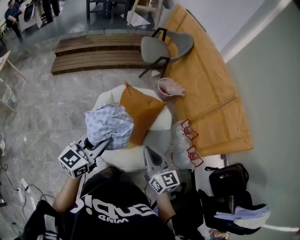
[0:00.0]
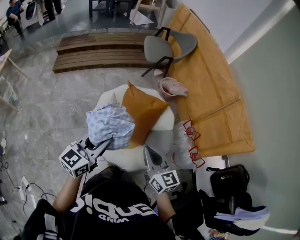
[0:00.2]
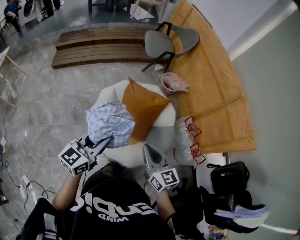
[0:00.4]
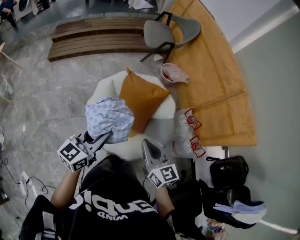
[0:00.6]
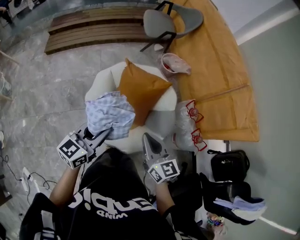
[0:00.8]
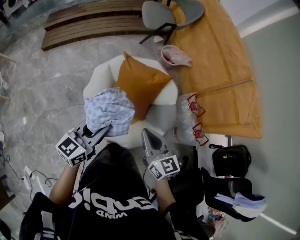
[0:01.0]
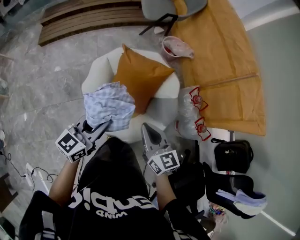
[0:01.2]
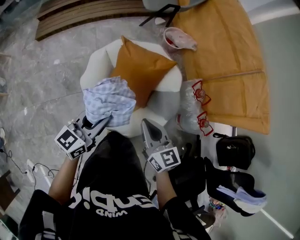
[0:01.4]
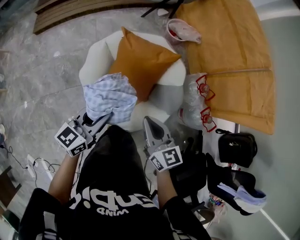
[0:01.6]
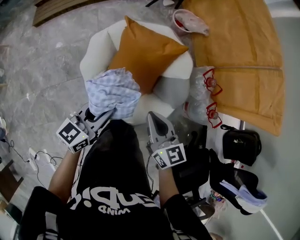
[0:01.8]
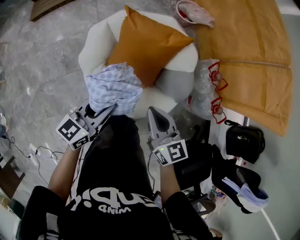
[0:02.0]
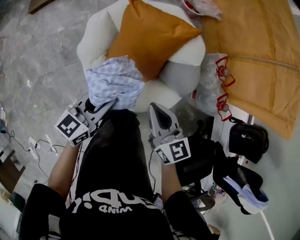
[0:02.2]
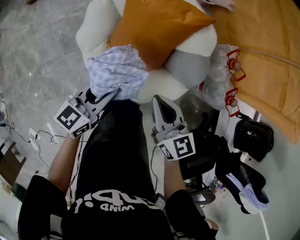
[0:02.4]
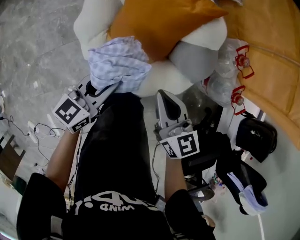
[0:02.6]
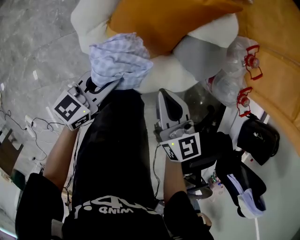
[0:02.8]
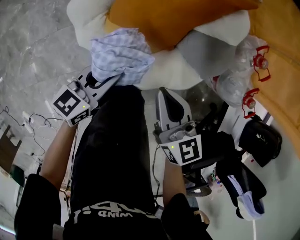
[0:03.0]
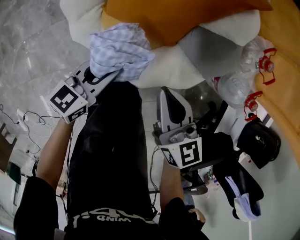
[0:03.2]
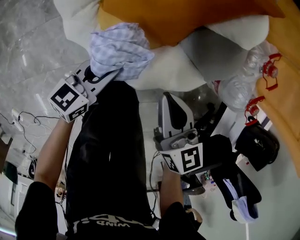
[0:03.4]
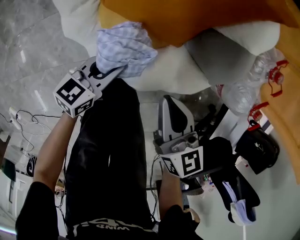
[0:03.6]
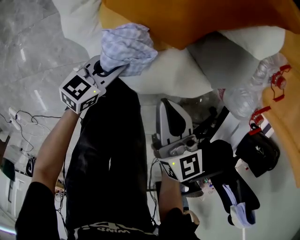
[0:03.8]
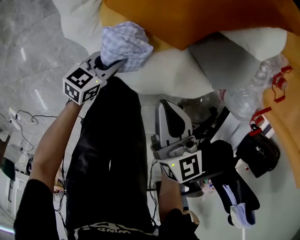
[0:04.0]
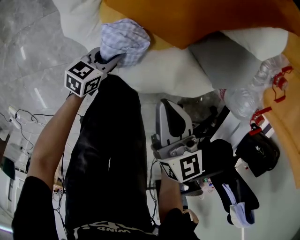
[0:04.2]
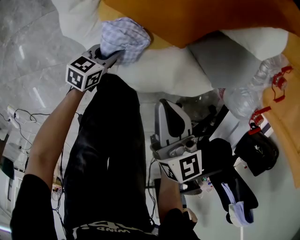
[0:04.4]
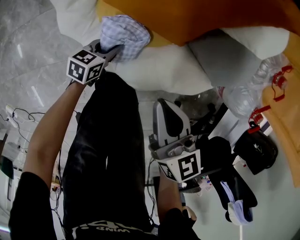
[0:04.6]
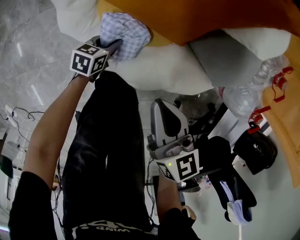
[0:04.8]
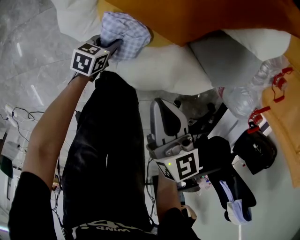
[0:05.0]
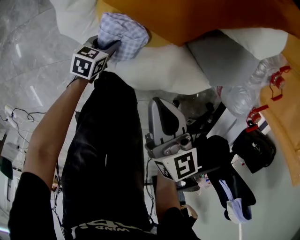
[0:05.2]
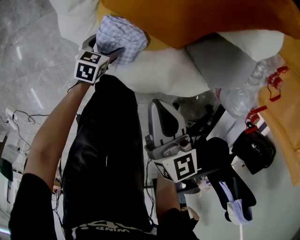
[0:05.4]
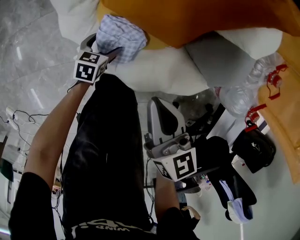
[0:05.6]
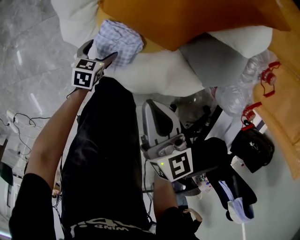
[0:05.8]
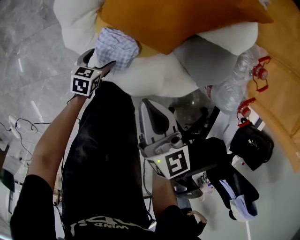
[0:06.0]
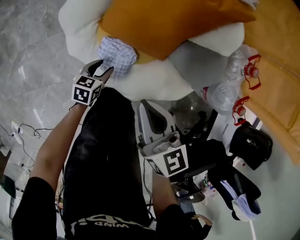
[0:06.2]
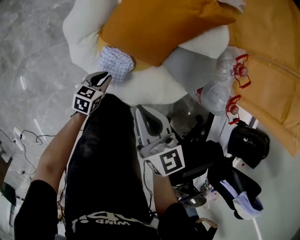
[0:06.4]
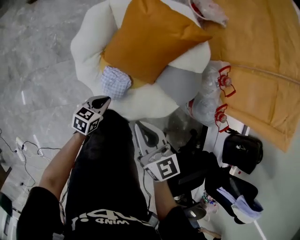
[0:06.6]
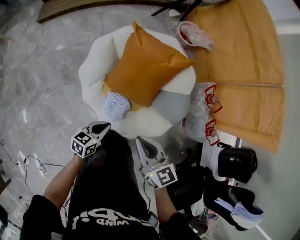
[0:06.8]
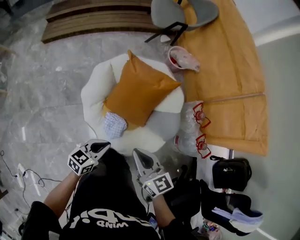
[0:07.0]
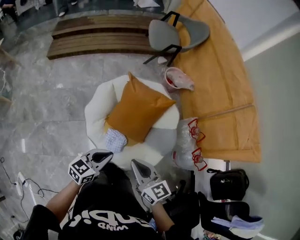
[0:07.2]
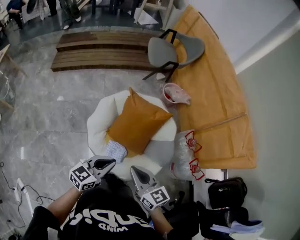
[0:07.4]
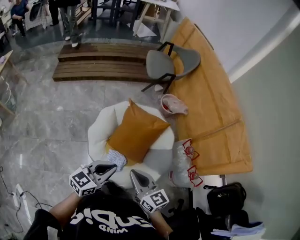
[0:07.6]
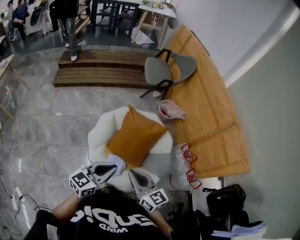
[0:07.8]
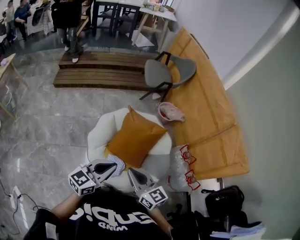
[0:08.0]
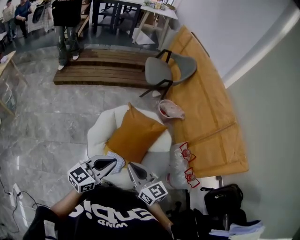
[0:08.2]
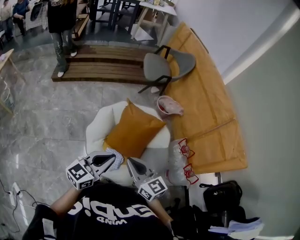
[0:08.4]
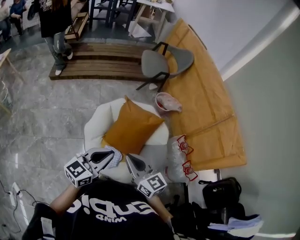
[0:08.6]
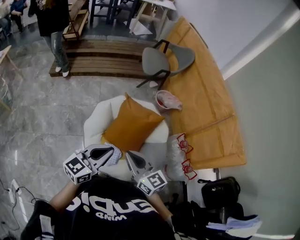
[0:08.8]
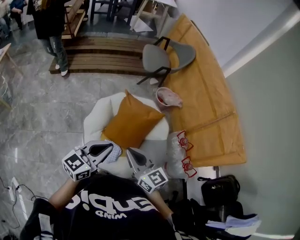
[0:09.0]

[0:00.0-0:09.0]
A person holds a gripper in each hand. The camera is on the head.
0.0 to 1.6 s: The grippers both shift downward and forward by roughly 15 cm.
1.6 to 3.0 s: The grippers both shift downward by some 25 cm.
3.0 to 4.4 s: The right gripper is displaced downward by some 10 cm, while the left gripper heads downward, covering about 30 cm.
4.4 to 6.0 s: The right gripper heads upward, covering roughly 5 cm. Meanwhile the left gripper opens.
6.0 to 7.6 s: The left gripper heads upward, covering roughly 70 cm, angles its fingers upward, by roughly 40 degrees, and closes. Meanwhile the right gripper moves upward, approximately 40 cm, and rotates roughly 20 degrees.
7.6 to 9.0 s: The left gripper heads upward, covering about 5 cm. The right gripper shifts by about 5 cm.

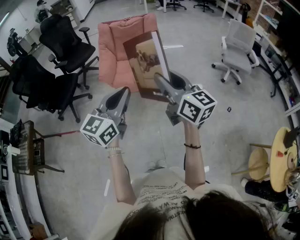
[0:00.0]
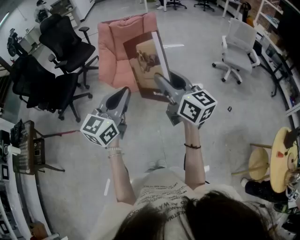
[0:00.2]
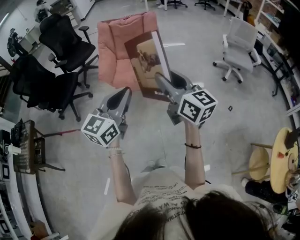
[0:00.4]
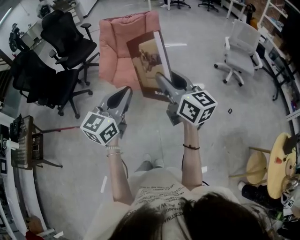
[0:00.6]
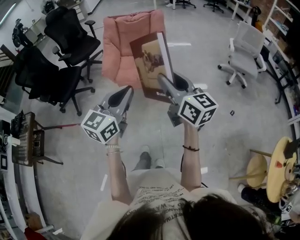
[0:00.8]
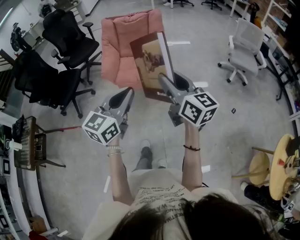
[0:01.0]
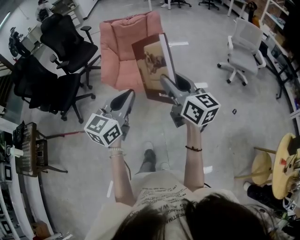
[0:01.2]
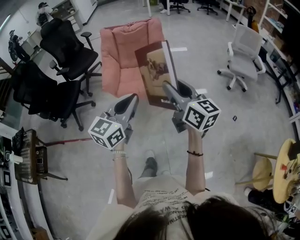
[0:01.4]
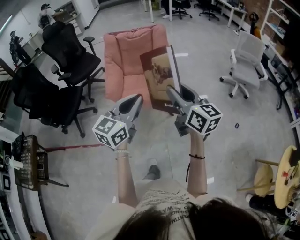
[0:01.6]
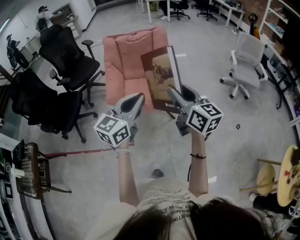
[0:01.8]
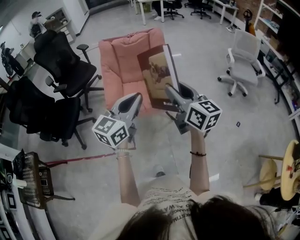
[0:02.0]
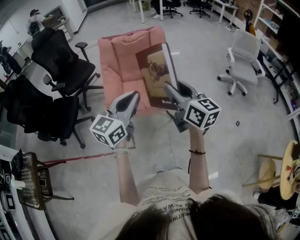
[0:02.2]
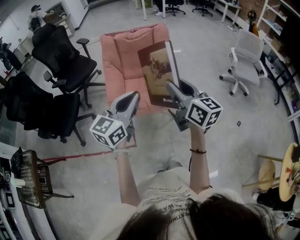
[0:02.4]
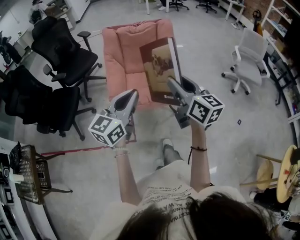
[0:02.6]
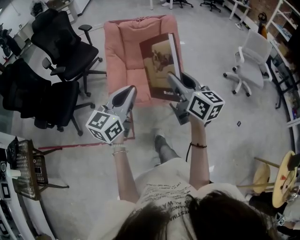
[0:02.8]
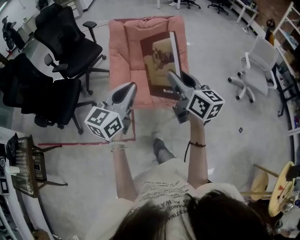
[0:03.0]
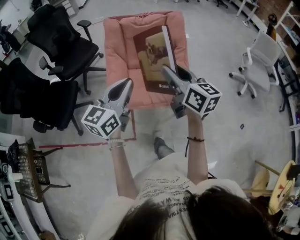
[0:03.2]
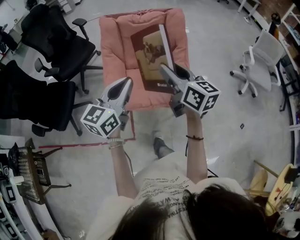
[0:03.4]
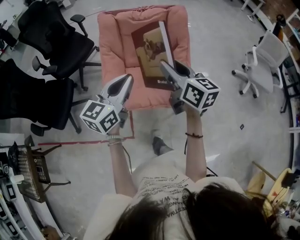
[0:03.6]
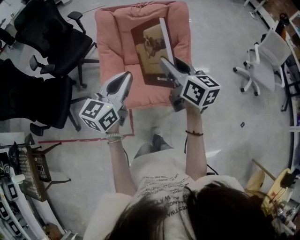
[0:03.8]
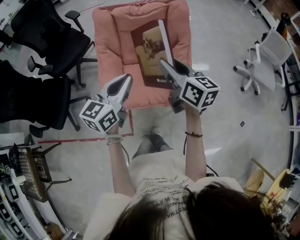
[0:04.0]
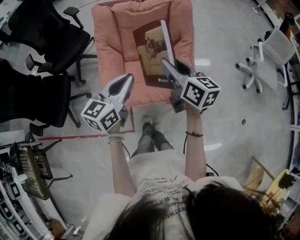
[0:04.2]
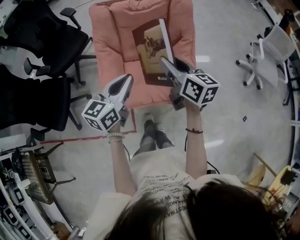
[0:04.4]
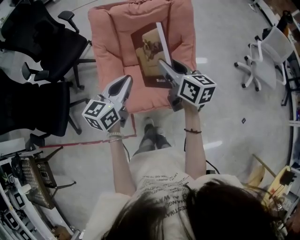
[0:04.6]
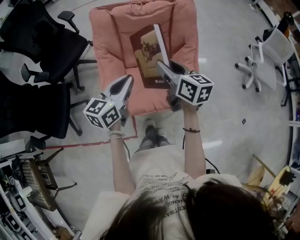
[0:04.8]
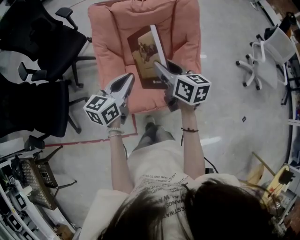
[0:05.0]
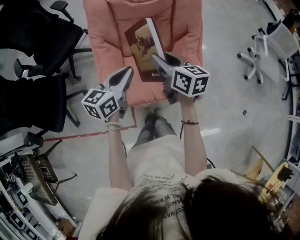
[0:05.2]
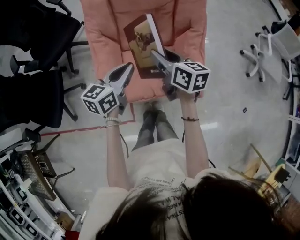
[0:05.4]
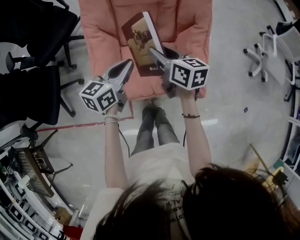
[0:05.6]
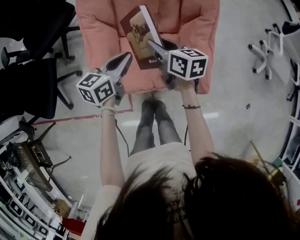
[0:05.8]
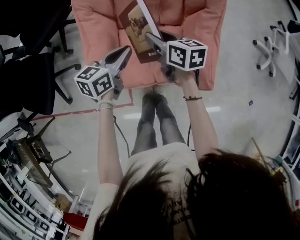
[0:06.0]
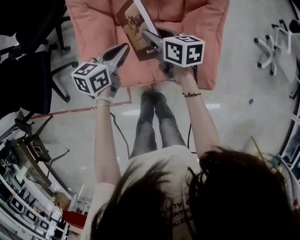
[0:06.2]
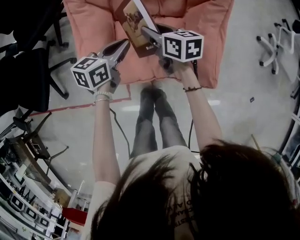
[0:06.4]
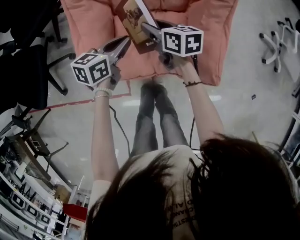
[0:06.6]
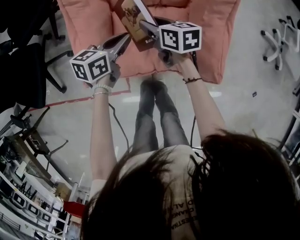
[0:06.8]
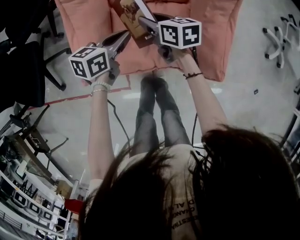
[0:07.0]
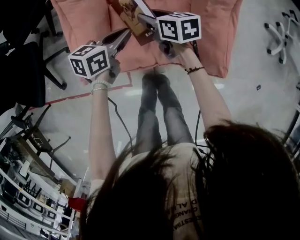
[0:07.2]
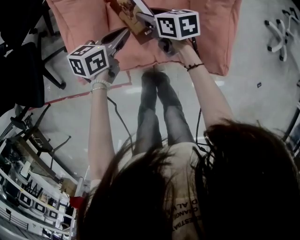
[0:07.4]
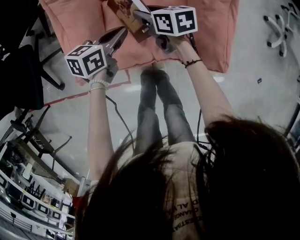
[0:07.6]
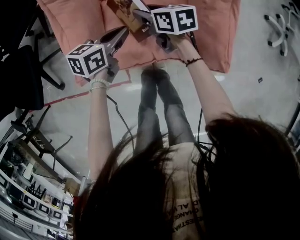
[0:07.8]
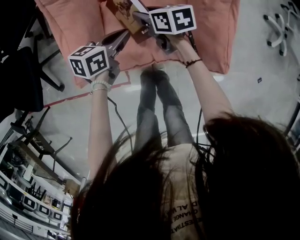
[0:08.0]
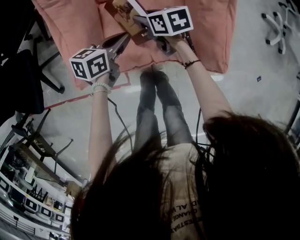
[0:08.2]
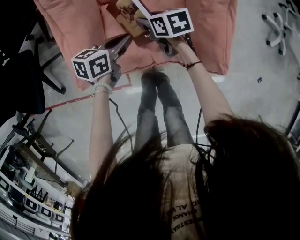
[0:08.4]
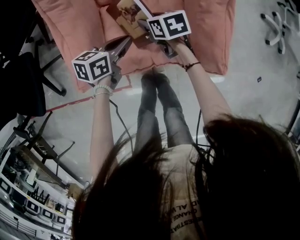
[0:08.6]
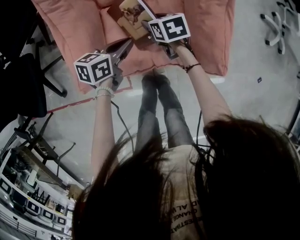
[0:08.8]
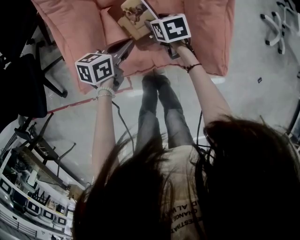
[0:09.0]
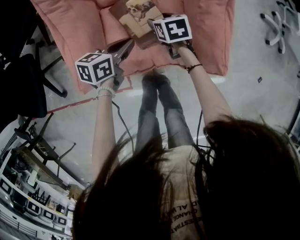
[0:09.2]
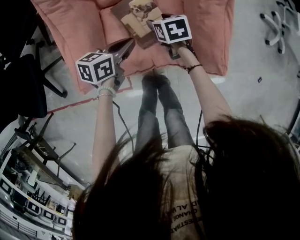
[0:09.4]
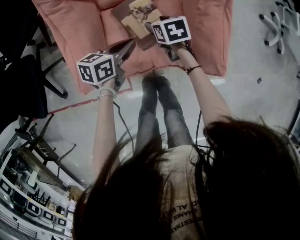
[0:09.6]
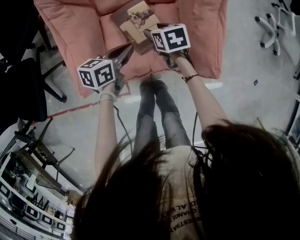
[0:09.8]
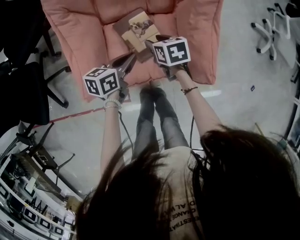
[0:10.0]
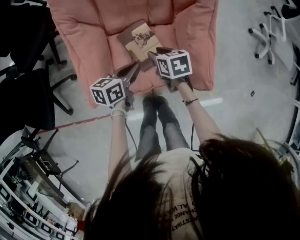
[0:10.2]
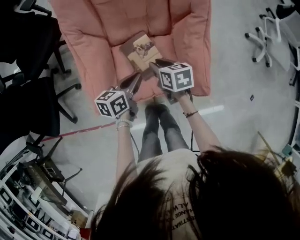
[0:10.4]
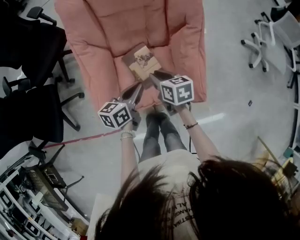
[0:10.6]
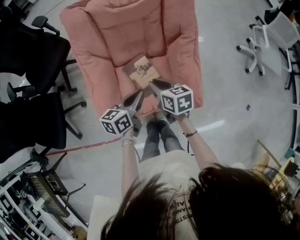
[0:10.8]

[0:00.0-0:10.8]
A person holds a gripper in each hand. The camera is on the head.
0.0 to 1.6 s: Both grippers travel together forward, about 15 cm.
1.6 to 3.0 s: The grippers both shift forward and to the left by some 25 cm.
3.0 to 4.6 s: Both grippers travel together forward and downward, some 30 cm.
4.6 to 6.2 s: Both grippers travel together downward and forward, about 30 cm. The left gripper turns by approximately 20 degrees; the right gripper changes its angle by roughly 20 degrees.
6.2 to 7.8 s: Both grippers move downward, roughly 15 cm.
7.8 to 9.2 s: The right gripper moves to the right, some 10 cm, and changes its angle by about 30 degrees.
9.2 to 10.8 s: The grippers both shift upward by about 20 cm. The right gripper turns by roughly 20 degrees, and closes.

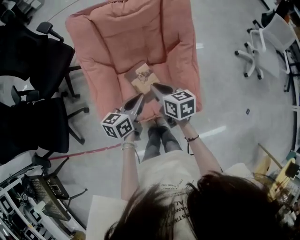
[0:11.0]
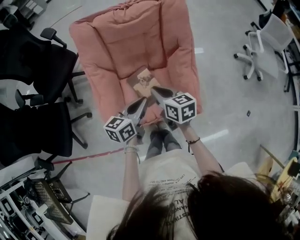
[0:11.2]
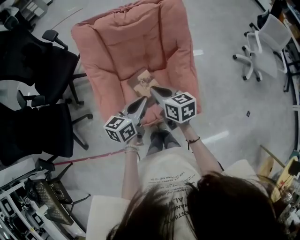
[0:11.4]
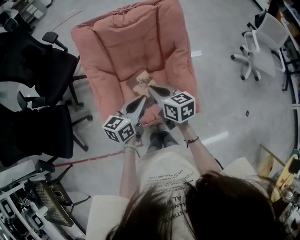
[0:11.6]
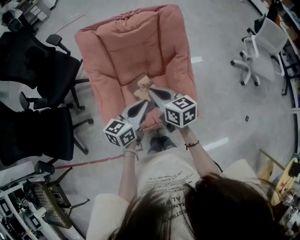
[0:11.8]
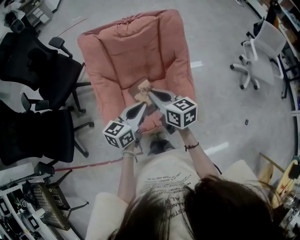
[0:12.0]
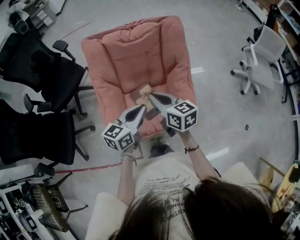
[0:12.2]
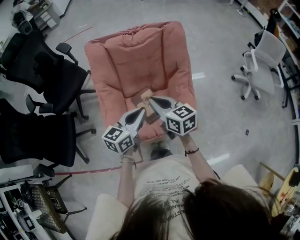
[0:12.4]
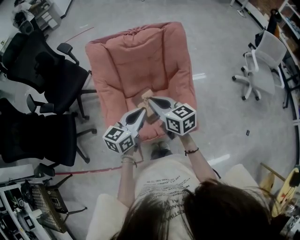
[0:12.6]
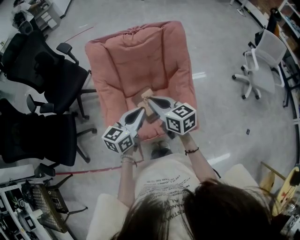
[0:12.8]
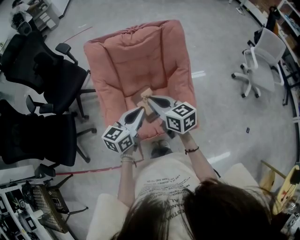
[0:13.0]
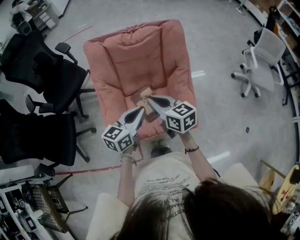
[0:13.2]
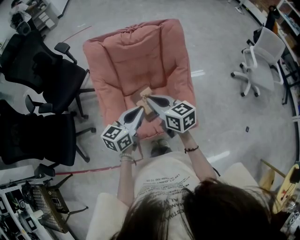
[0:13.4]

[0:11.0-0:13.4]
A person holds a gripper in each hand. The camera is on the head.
11.0 to 12.2 s: The two grippers go roughly 10 cm upward.
12.2 to 13.4 s: The grippers move only a little.

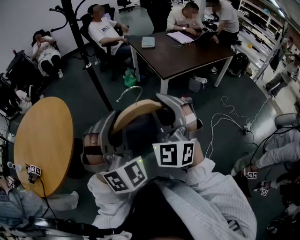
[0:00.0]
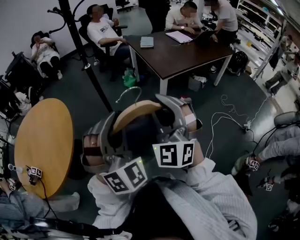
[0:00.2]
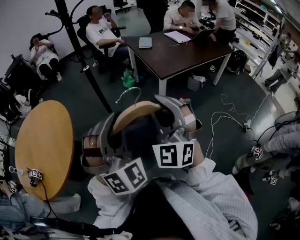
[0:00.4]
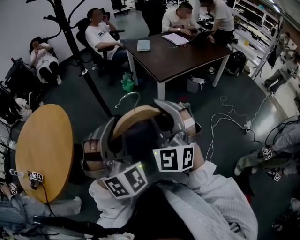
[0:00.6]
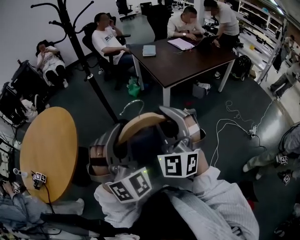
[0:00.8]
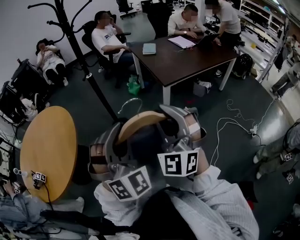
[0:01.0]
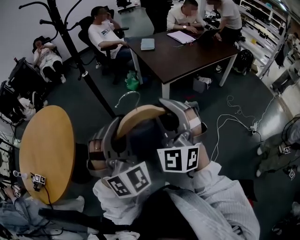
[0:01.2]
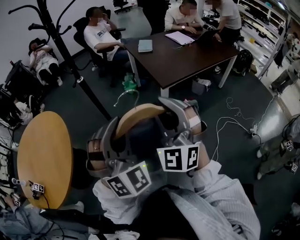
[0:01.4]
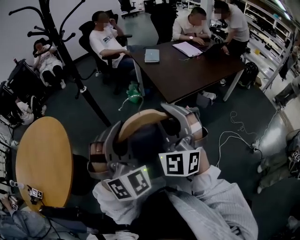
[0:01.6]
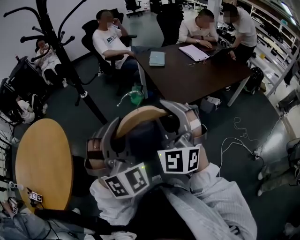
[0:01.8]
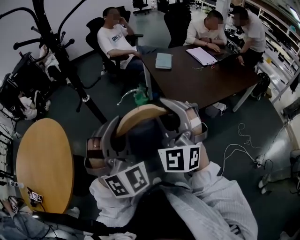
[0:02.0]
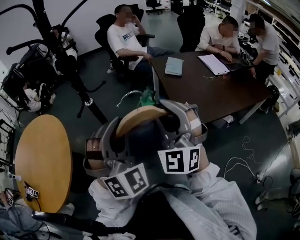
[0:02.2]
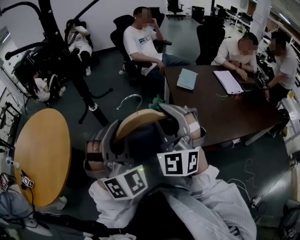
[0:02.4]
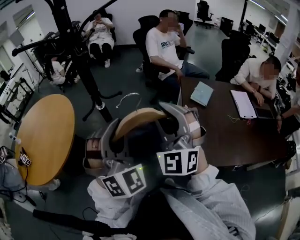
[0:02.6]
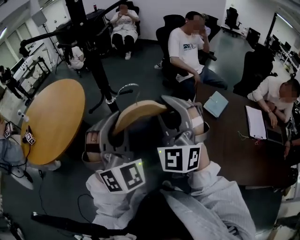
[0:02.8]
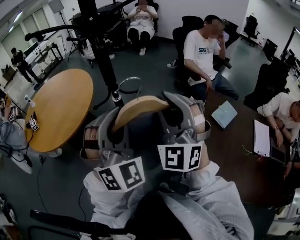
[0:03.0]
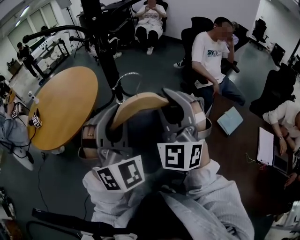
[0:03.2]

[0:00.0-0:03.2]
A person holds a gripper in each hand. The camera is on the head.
0.0 to 1.6 s: The right gripper is displaced forward and to the right by approximately 20 cm, while the left gripper goes about 20 cm forward.
1.6 to 3.2 s: The two grippers travel together, about 40 cm. The right gripper rotates about 50 degrees. The left gripper rotates some 50 degrees.
